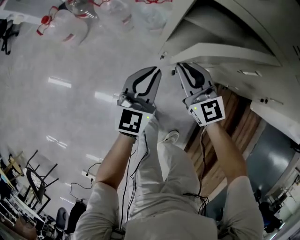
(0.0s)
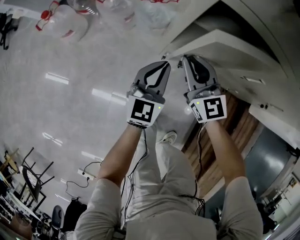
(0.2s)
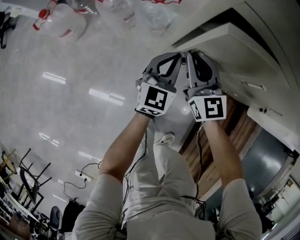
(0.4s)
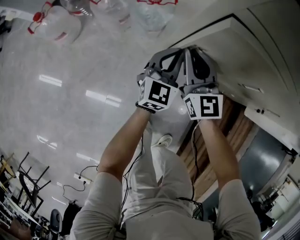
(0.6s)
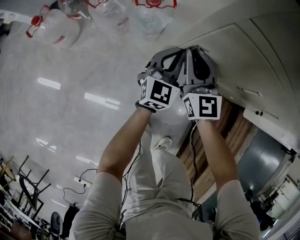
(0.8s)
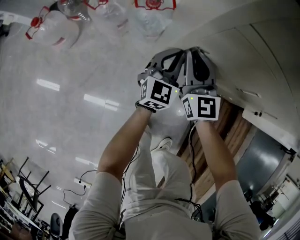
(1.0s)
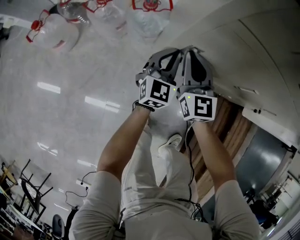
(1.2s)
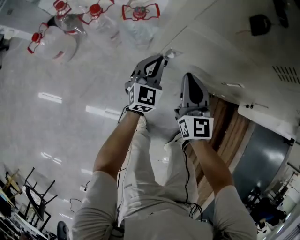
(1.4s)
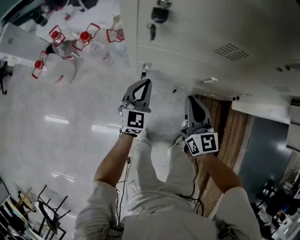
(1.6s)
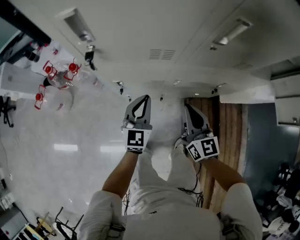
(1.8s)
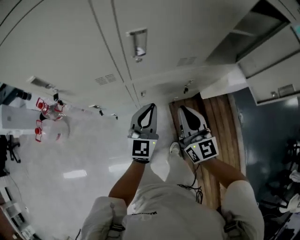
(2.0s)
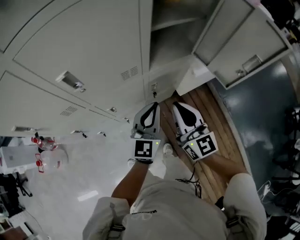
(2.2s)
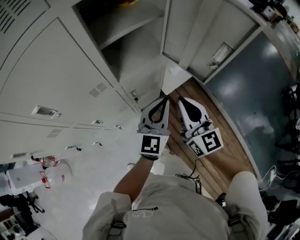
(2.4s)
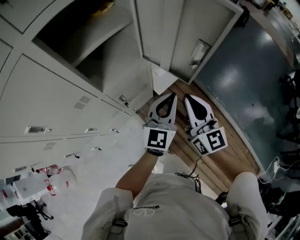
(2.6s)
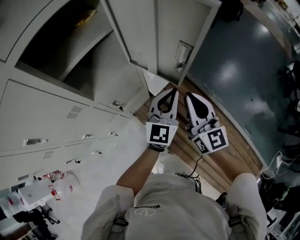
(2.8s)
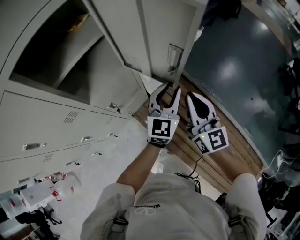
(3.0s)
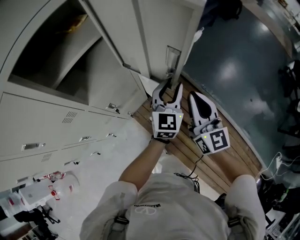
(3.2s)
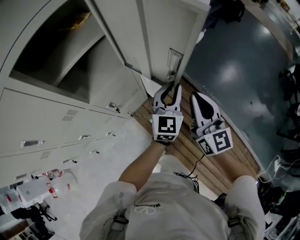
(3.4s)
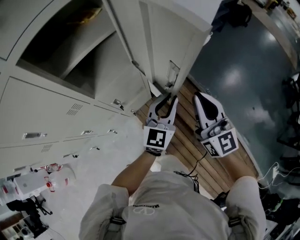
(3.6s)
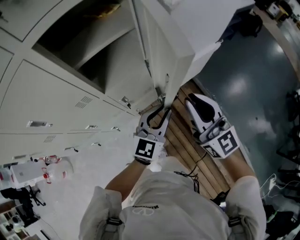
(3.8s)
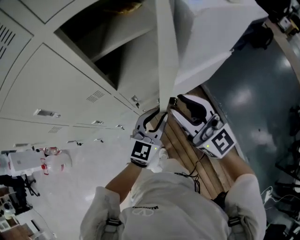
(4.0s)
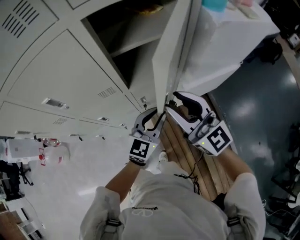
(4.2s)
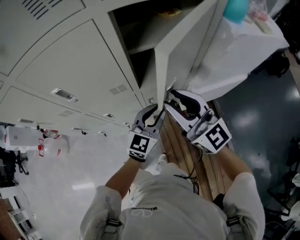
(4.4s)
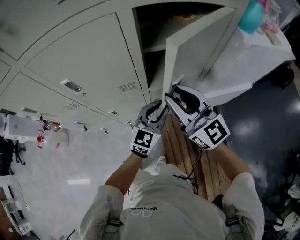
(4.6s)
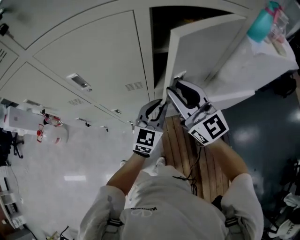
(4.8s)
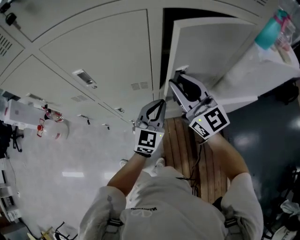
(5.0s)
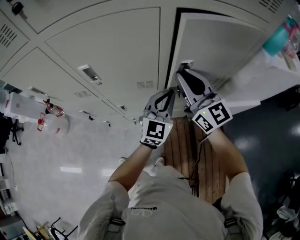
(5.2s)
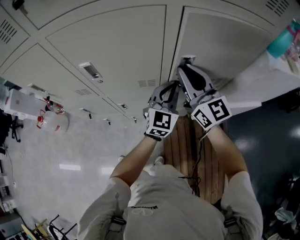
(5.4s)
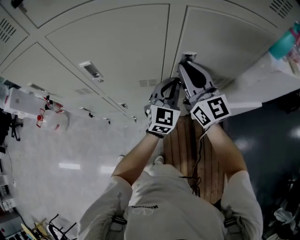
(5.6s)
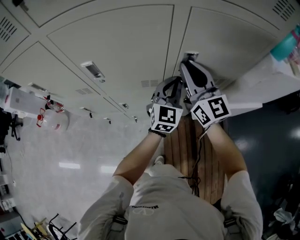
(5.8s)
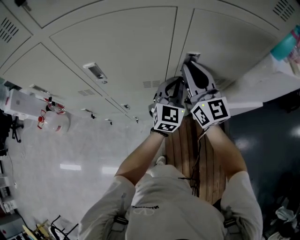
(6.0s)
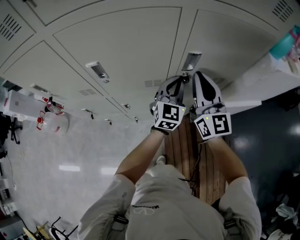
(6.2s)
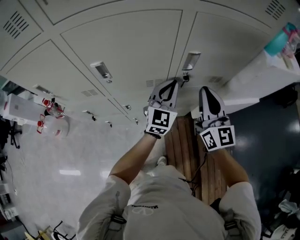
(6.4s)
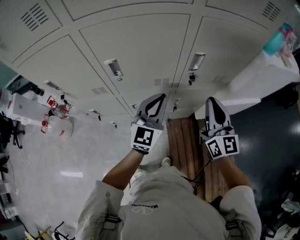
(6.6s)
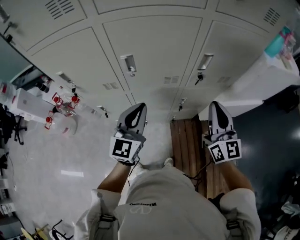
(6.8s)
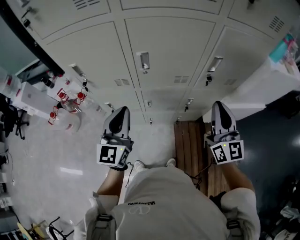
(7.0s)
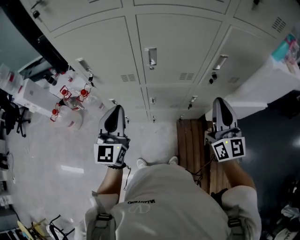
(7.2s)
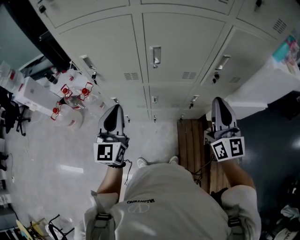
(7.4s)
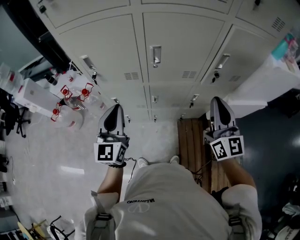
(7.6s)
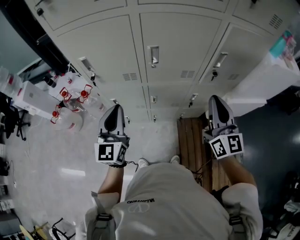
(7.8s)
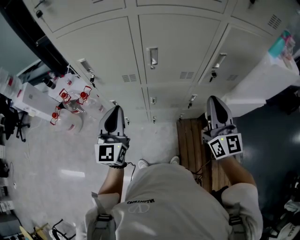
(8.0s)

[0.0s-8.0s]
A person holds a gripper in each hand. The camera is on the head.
0.0s to 1.6s: The left gripper is displaced forward and to the right by roughly 10 cm. Meanwhile the right gripper moves to the right and upward, roughly 15 cm, and turns by approximately 30 degrees.
1.6s to 3.2s: Both grippers are carried some 80 cm. The right gripper changes its angle by roughly 50 degrees; the left gripper rotates roughly 50 degrees, and opens its fingers.
3.2s to 4.8s: The left gripper shifts by some 35 cm, and changes its angle by about 30 degrees. The right gripper ends up some 35 cm from where it was, swivels approximately 50 degrees, and opens its fingers.
4.8s to 6.4s: The right gripper reaches roughly 10 cm forward, then returns, changes its angle by approximately 20 degrees, and closes its fingers; the left gripper goes some 5 cm forward.
6.4s to 8.0s: The left gripper is displaced to the left and backward by approximately 40 cm, and turns by approximately 20 degrees. The right gripper moves to the left and backward, about 20 cm.

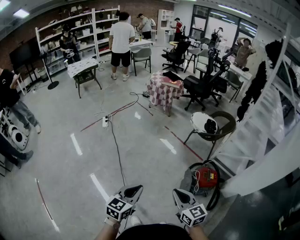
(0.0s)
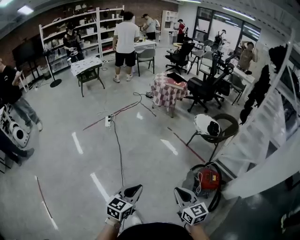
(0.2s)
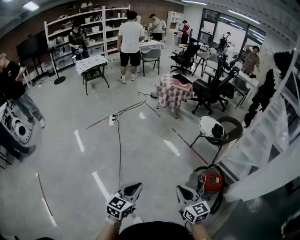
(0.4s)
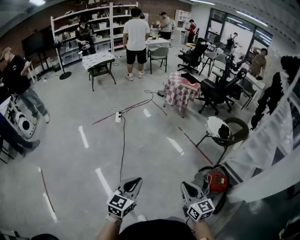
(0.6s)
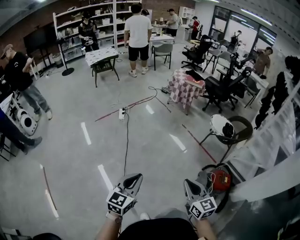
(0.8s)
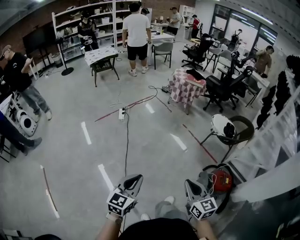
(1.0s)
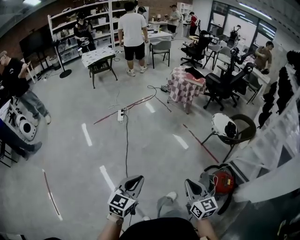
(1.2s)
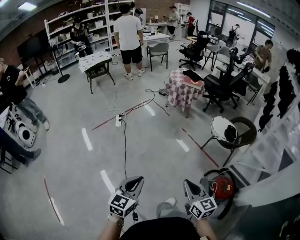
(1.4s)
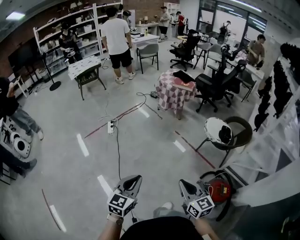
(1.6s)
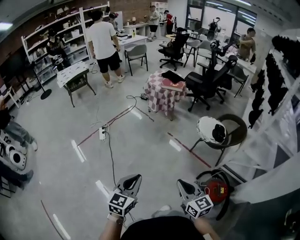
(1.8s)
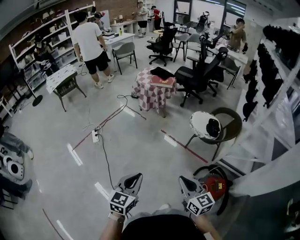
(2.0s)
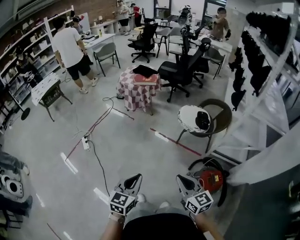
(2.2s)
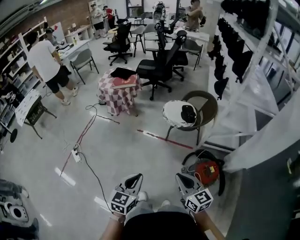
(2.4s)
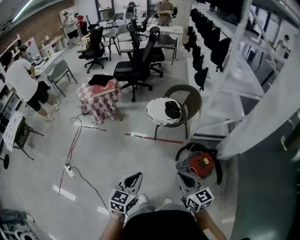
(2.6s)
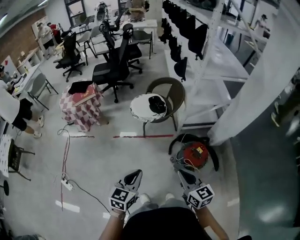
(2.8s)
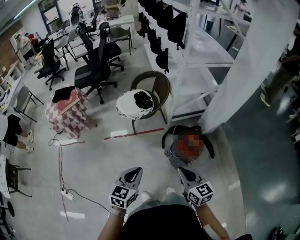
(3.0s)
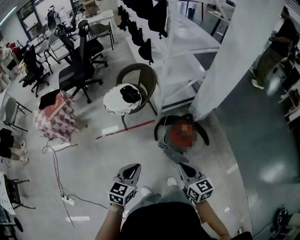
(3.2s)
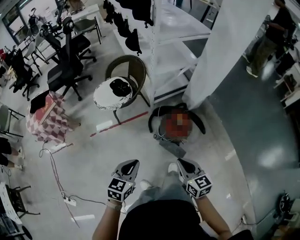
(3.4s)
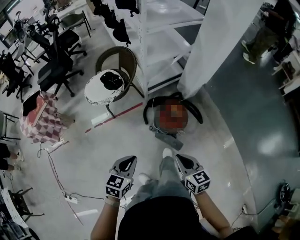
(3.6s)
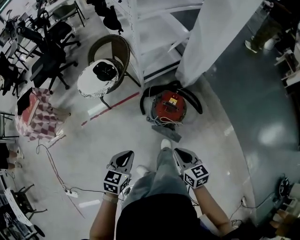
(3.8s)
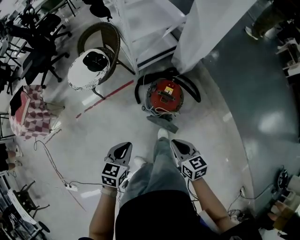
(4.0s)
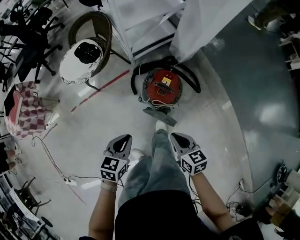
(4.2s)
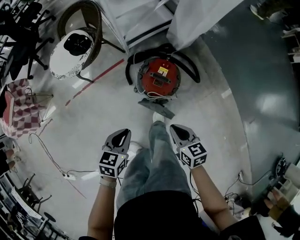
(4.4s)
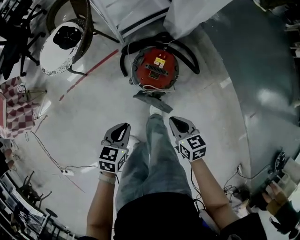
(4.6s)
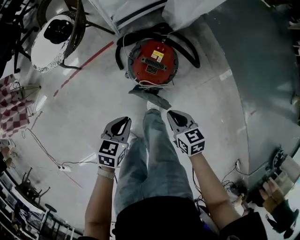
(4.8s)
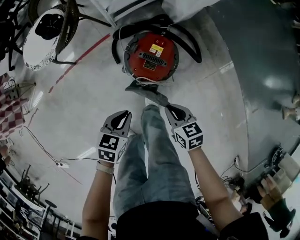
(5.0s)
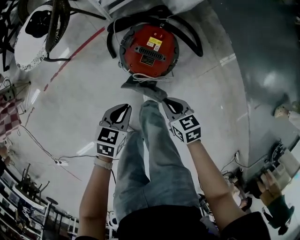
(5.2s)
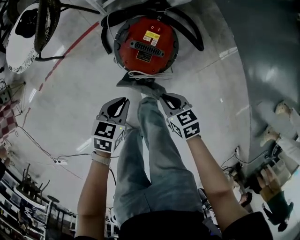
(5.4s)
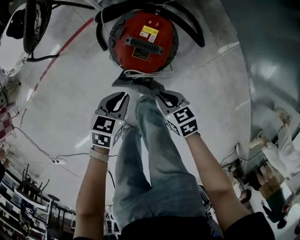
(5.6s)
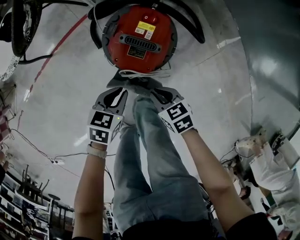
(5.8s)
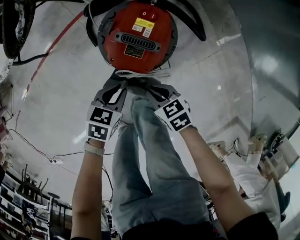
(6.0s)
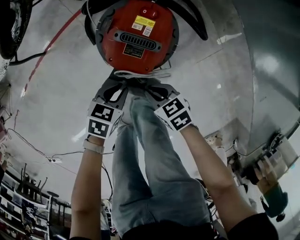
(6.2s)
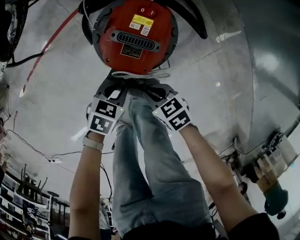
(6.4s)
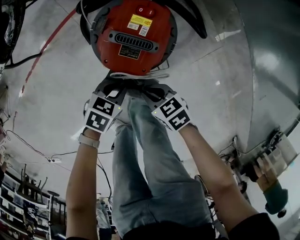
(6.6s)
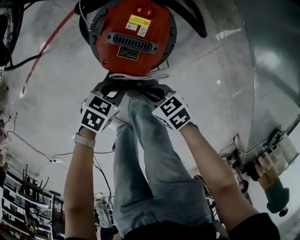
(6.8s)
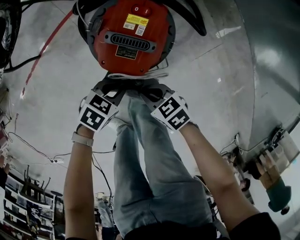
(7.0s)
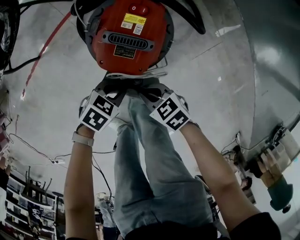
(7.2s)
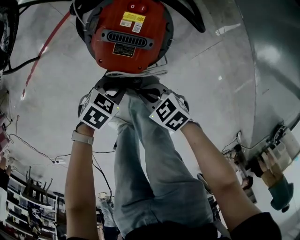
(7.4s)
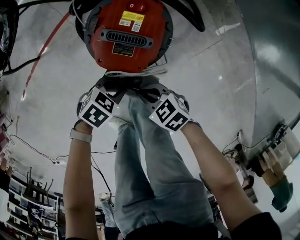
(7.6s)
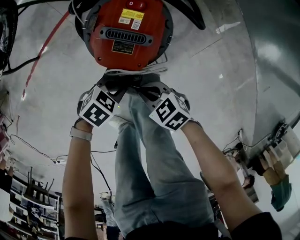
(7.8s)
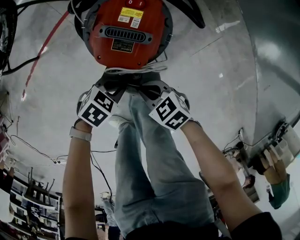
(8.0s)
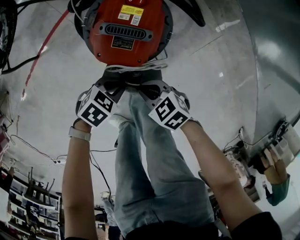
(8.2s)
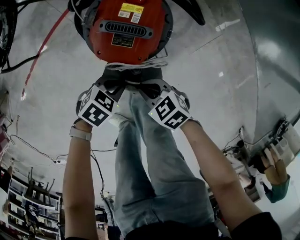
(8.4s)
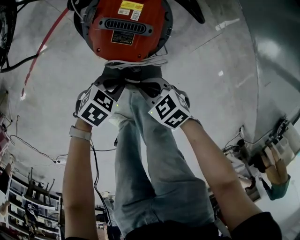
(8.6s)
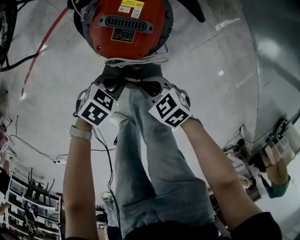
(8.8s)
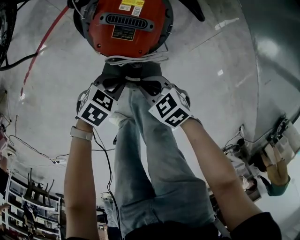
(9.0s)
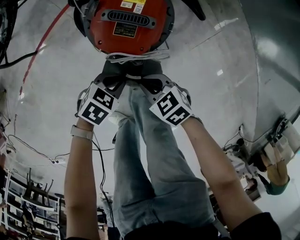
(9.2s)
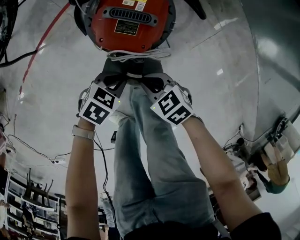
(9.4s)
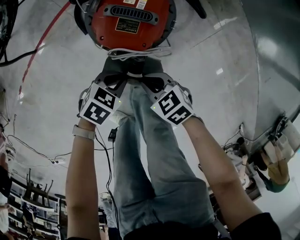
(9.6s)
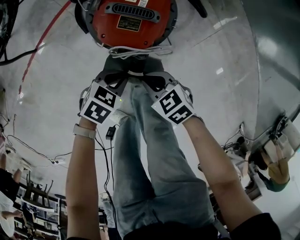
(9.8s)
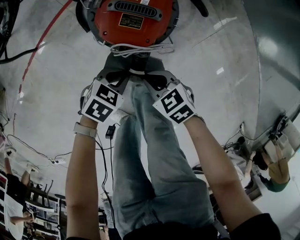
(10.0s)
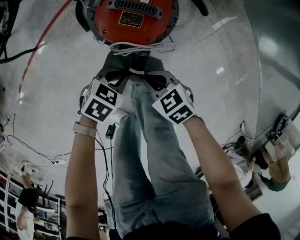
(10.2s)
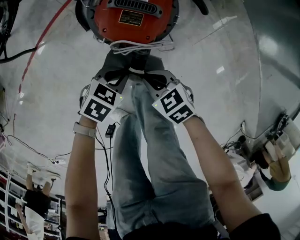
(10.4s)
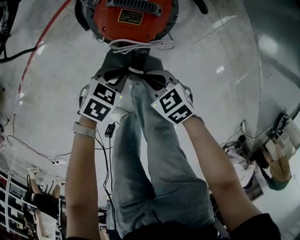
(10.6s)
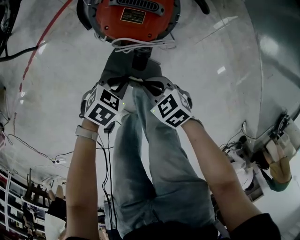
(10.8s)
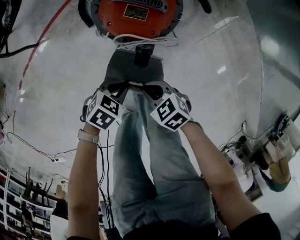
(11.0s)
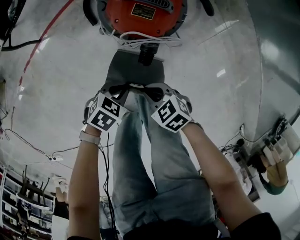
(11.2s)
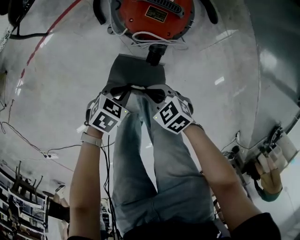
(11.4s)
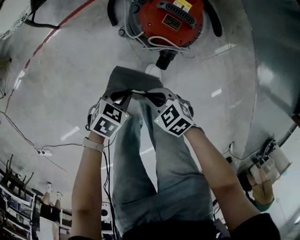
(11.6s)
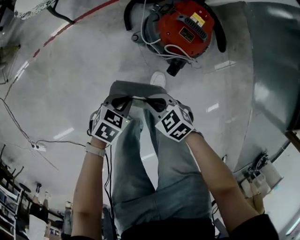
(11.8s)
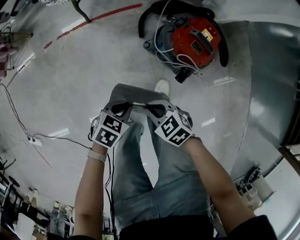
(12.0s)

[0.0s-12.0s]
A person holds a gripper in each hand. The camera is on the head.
0.0s to 1.6s: The grippers both shift forward by roughly 25 cm.
1.6s to 3.0s: The left gripper moves some 40 cm, and changes its angle by approximately 60 degrees; the right gripper moves about 25 cm, and swivels approximately 60 degrees.
3.0s to 4.4s: The right gripper heads downward and to the right, covering approximately 35 cm, and turns by approximately 30 degrees, while the left gripper shifts roughly 35 cm downward, to the right and forward, and turns by about 30 degrees.
4.4s to 6.0s: Both grippers move downward, some 35 cm. The right gripper changes its angle by approximately 20 degrees.
6.0s to 7.6s: The left gripper moves downward, some 5 cm, and changes its angle by approximately 30 degrees.
7.6s to 10.4s: The grippers stay close to where they were, moving slightly.
10.4s to 12.0s: The left gripper ends up approximately 25 cm from where it was, and changes its angle by about 30 degrees. The right gripper shifts by roughly 25 cm, and rotates approximately 30 degrees.

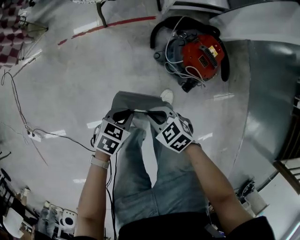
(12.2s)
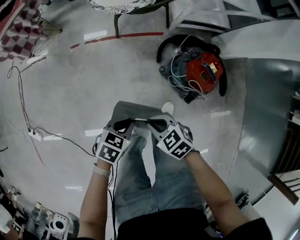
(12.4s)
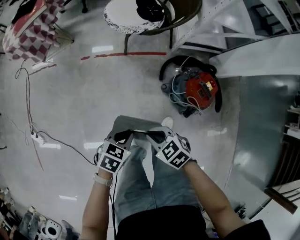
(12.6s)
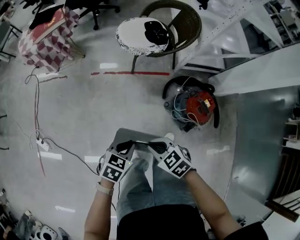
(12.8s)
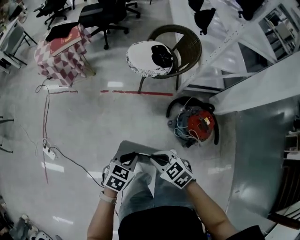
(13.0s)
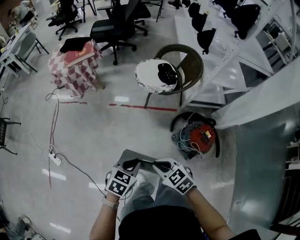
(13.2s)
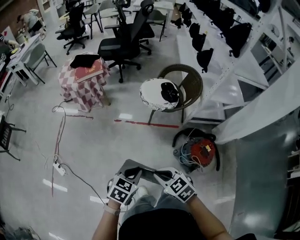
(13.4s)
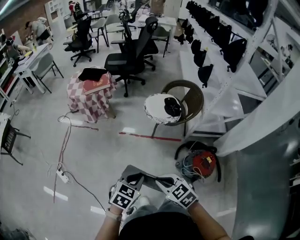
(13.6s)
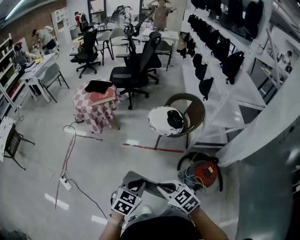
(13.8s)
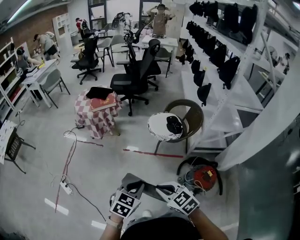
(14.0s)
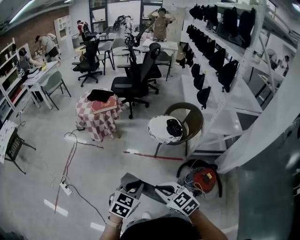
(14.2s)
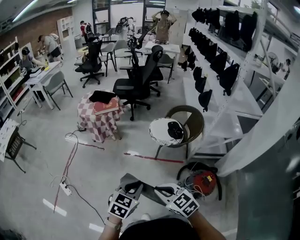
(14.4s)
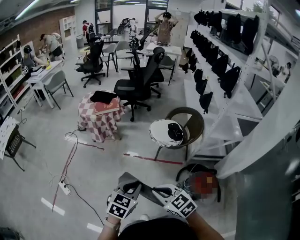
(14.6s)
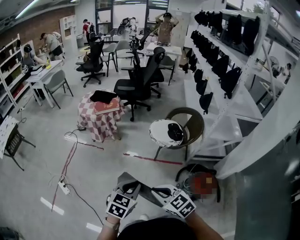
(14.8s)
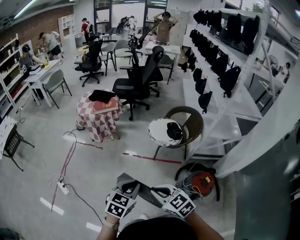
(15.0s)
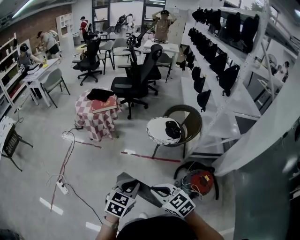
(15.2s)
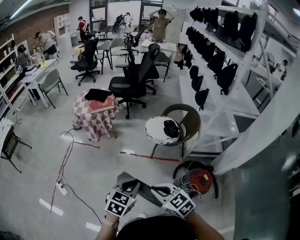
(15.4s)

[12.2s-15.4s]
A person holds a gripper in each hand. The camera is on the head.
12.2s to 13.8s: The two grippers go roughly 50 cm upward. The left gripper swivels roughly 40 degrees; the right gripper rotates approximately 20 degrees.
13.8s to 15.4s: The left gripper shifts by roughly 5 cm.
